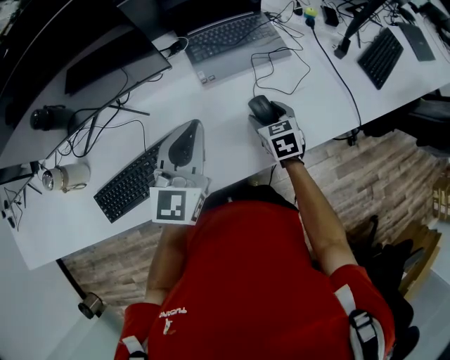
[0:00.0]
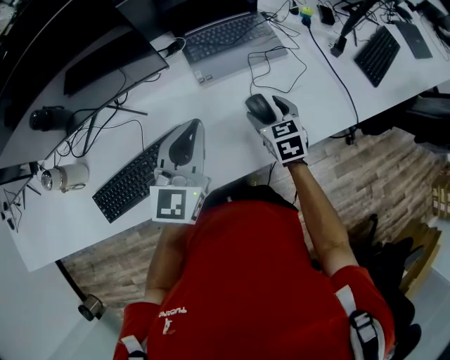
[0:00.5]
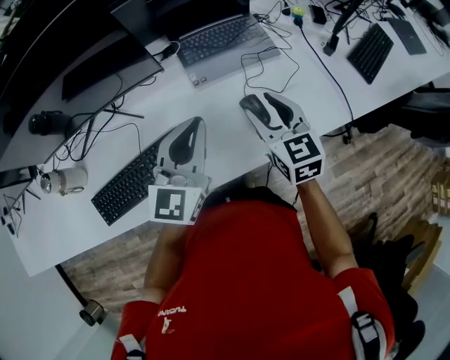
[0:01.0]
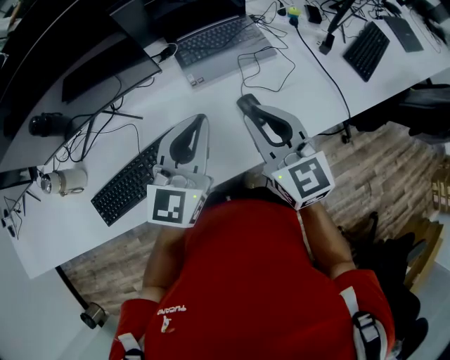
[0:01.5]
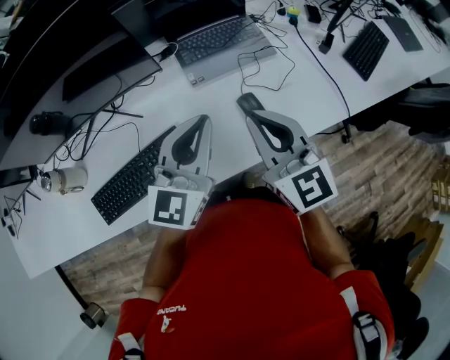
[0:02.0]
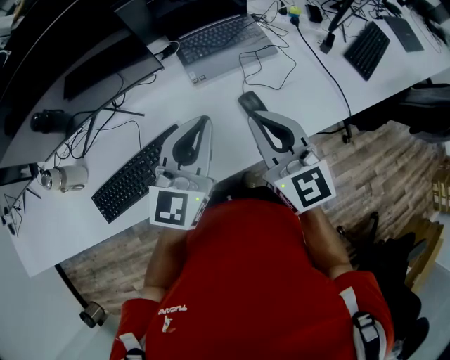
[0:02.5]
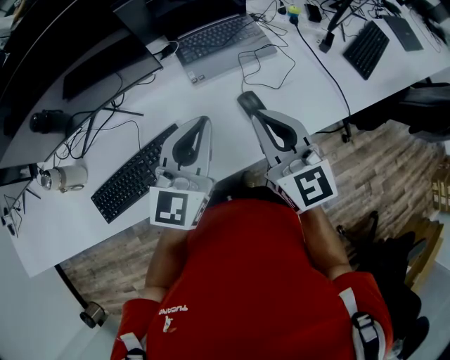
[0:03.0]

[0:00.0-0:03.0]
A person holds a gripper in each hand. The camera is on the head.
0:00.0 to 0:01.5: The left gripper ends up some 5 cm from where it was; the right gripper shifts approximately 25 cm upward, tips its fingers upward by about 40 degrees, and closes.
0:01.5 to 0:03.0: There are only small adjustments of the grippers.
